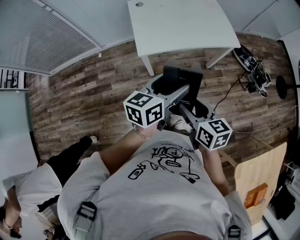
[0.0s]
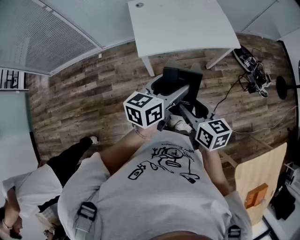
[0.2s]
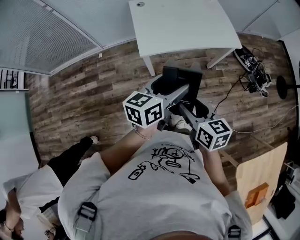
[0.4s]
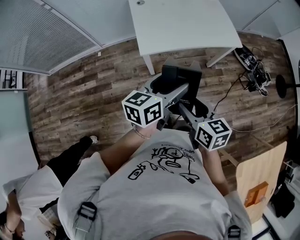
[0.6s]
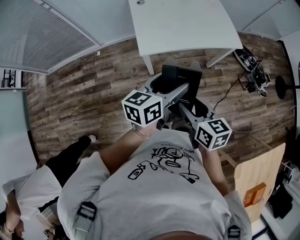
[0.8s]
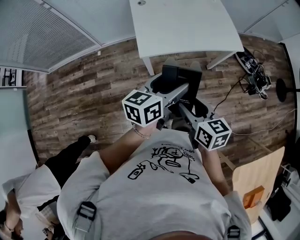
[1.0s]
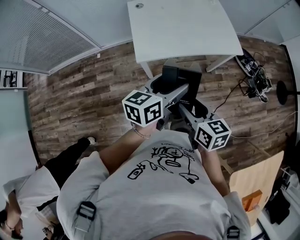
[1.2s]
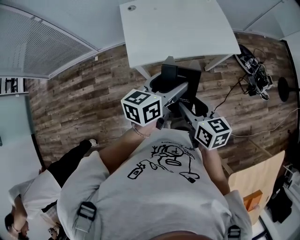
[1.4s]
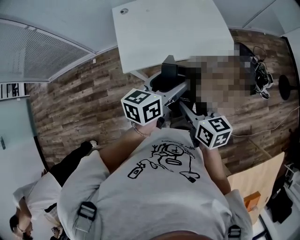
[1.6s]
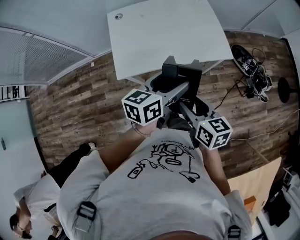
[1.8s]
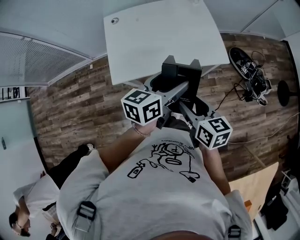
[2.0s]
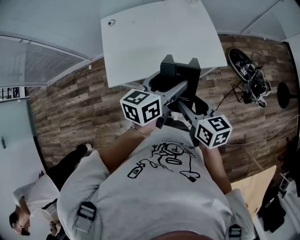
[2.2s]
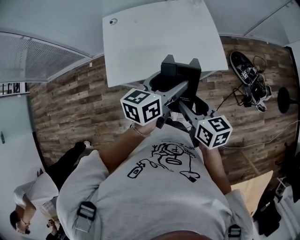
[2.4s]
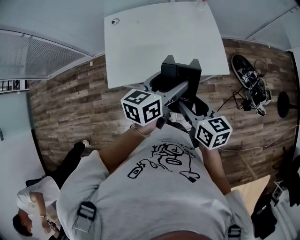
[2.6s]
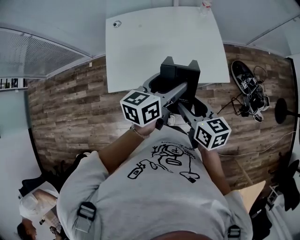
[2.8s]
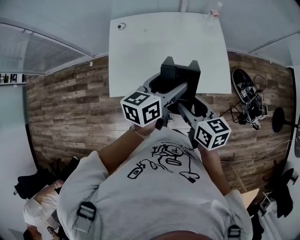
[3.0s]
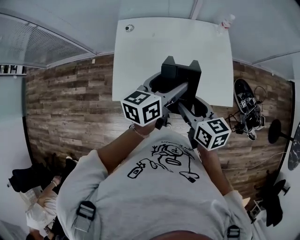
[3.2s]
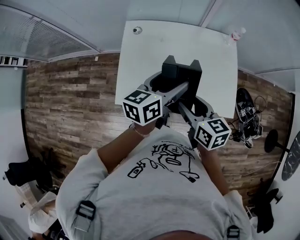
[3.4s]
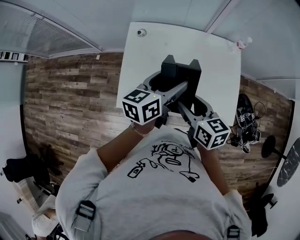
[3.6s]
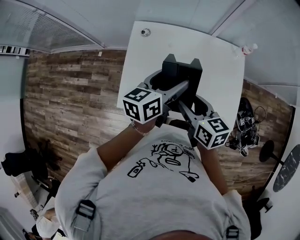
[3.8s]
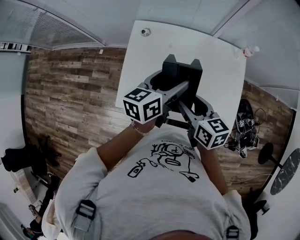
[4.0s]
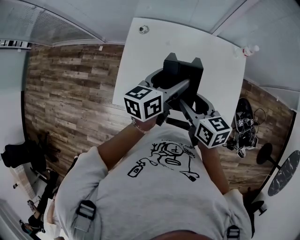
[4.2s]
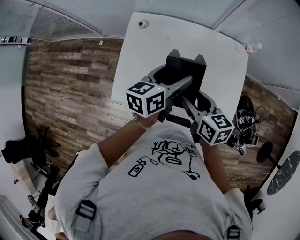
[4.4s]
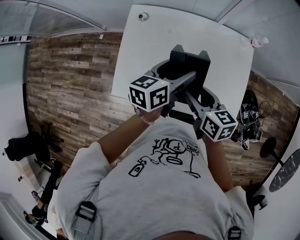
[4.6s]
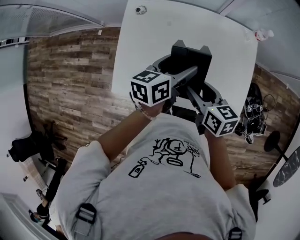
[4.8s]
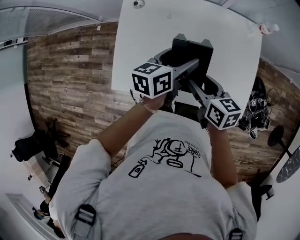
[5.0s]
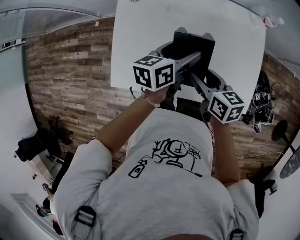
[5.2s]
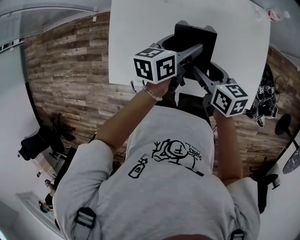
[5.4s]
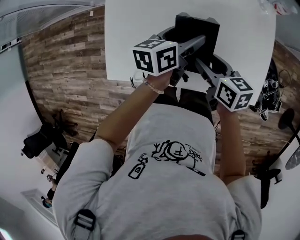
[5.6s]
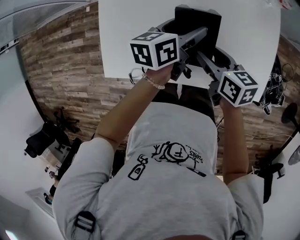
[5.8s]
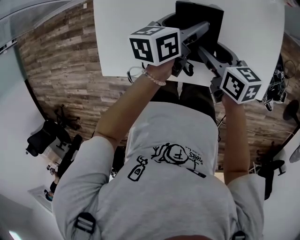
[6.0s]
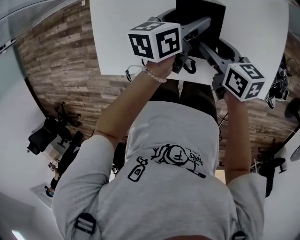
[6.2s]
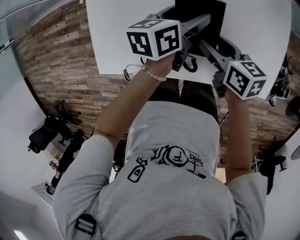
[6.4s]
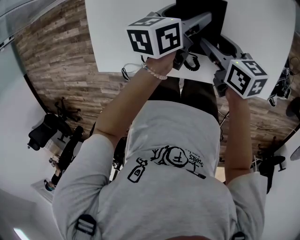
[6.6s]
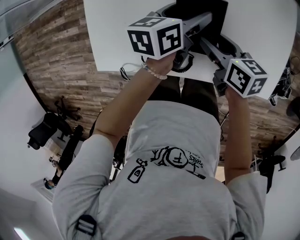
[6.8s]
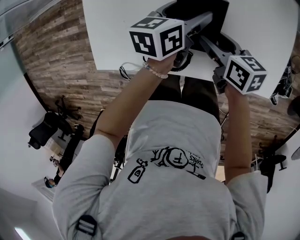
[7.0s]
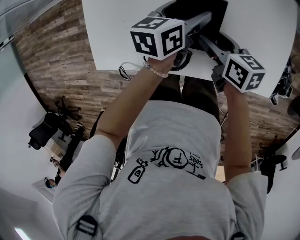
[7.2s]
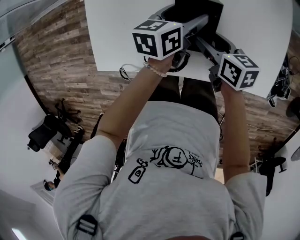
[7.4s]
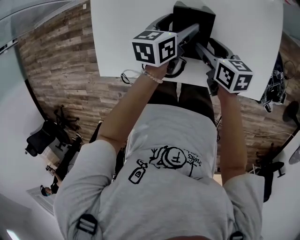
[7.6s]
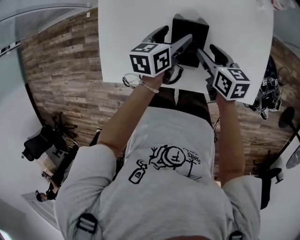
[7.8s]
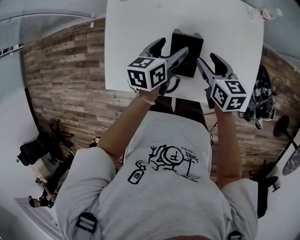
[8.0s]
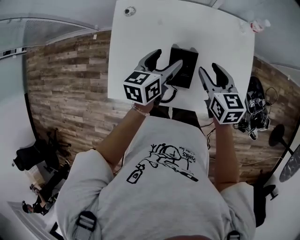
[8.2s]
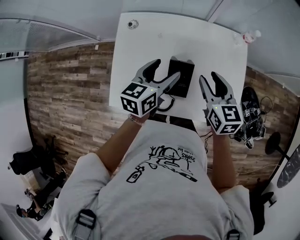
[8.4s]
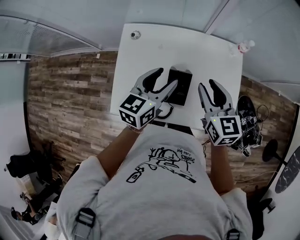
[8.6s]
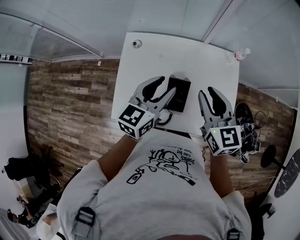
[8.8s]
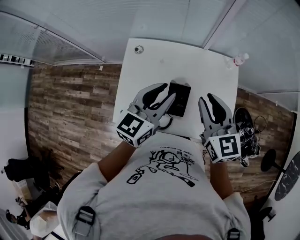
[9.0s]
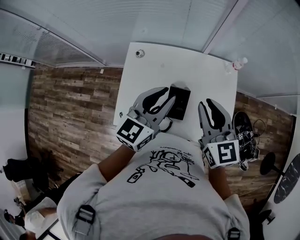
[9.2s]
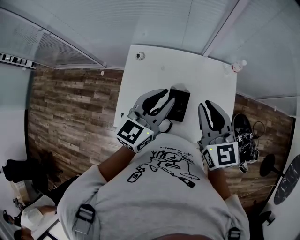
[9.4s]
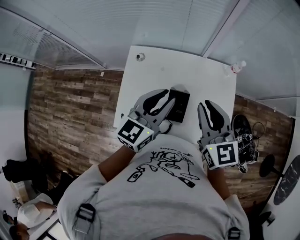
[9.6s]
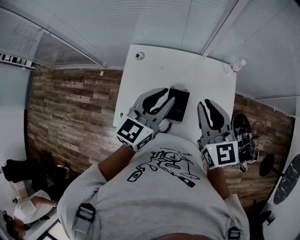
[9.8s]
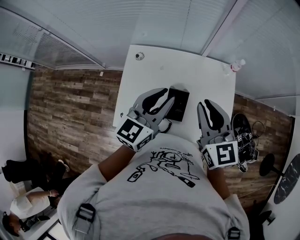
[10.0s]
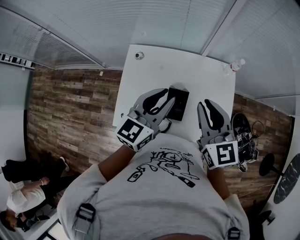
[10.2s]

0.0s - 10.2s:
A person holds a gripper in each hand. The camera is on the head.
0.0s - 1.4s: The two grippers go roughly 10 cm forward.
1.4s - 3.0s: The two grippers go approximately 30 cm forward and to the right.
3.0s - 4.4s: The grippers both shift forward by some 20 cm.
4.4s - 5.8s: Both grippers move downward, about 20 cm.
5.8s - 7.2s: The two grippers go about 5 cm downward.
7.2s - 8.8s: Both grippers travel together upward, some 35 cm. The right gripper rotates about 50 degrees, and closes its fingers, while the left gripper turns by approximately 30 degrees, and closes up.
8.8s - 10.2s: Both grippers move upward, roughly 5 cm.

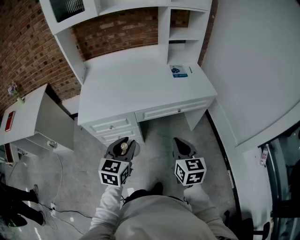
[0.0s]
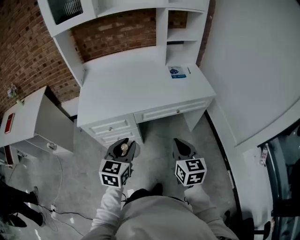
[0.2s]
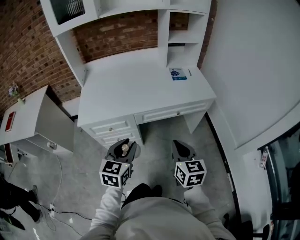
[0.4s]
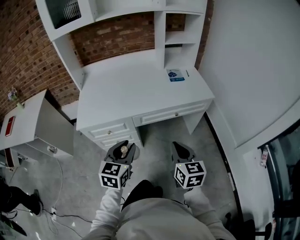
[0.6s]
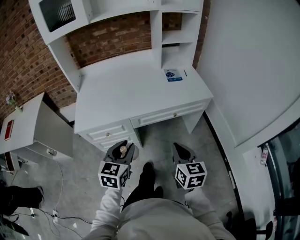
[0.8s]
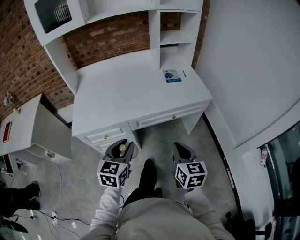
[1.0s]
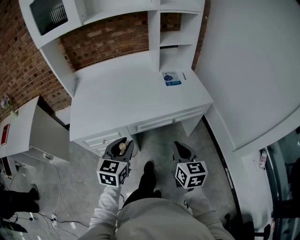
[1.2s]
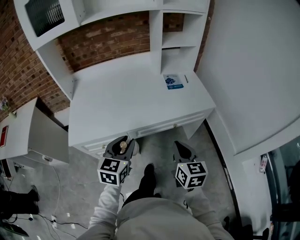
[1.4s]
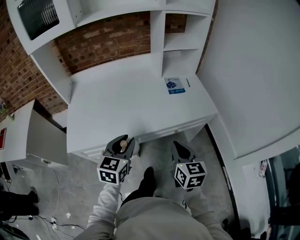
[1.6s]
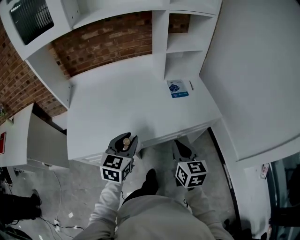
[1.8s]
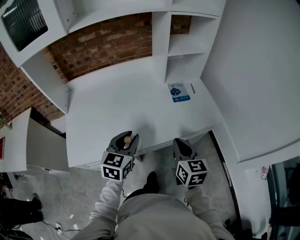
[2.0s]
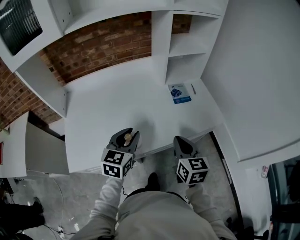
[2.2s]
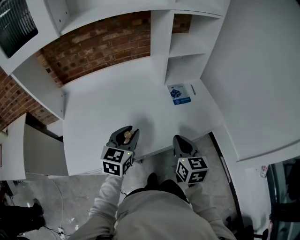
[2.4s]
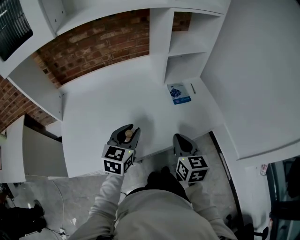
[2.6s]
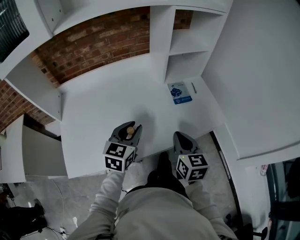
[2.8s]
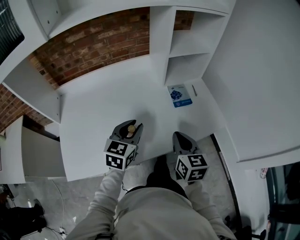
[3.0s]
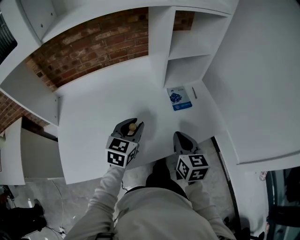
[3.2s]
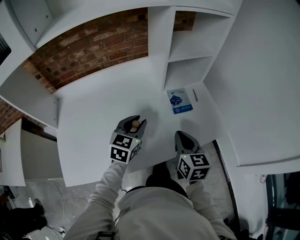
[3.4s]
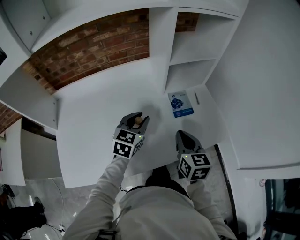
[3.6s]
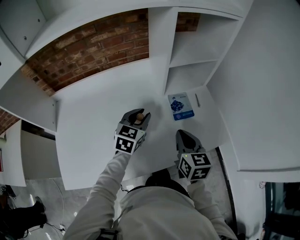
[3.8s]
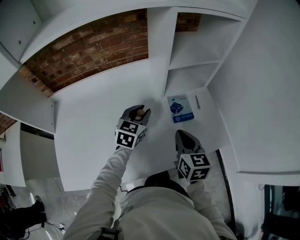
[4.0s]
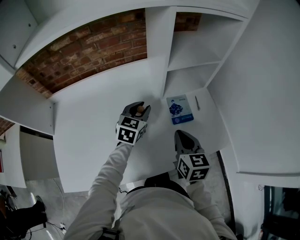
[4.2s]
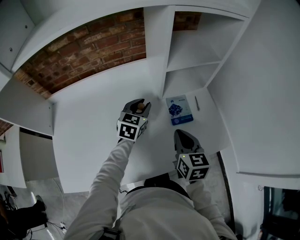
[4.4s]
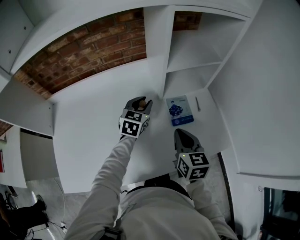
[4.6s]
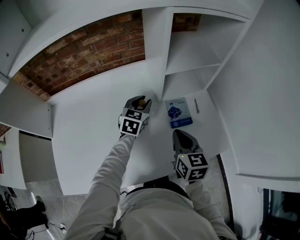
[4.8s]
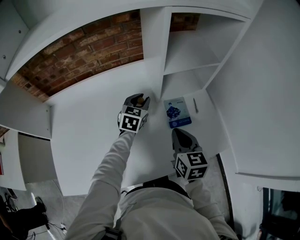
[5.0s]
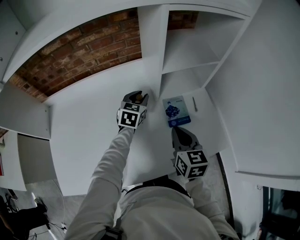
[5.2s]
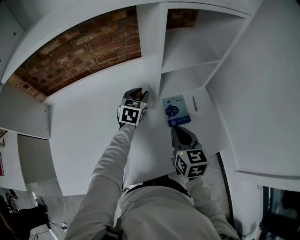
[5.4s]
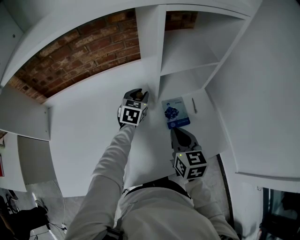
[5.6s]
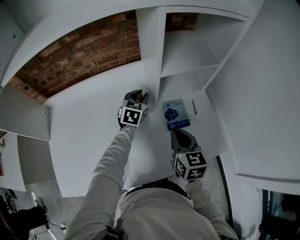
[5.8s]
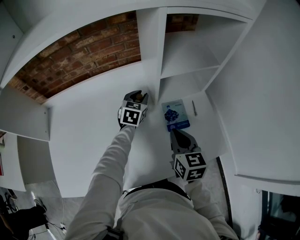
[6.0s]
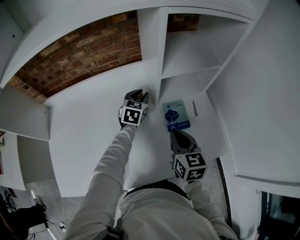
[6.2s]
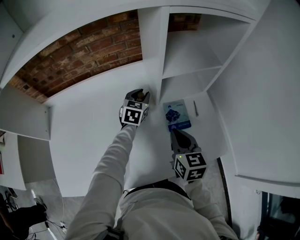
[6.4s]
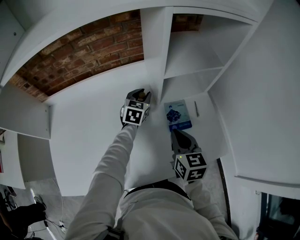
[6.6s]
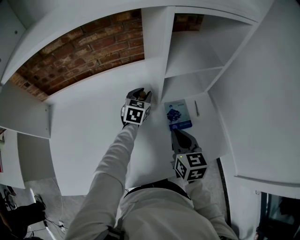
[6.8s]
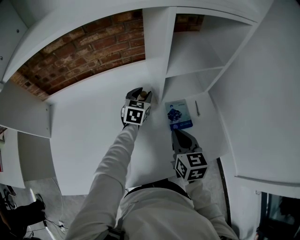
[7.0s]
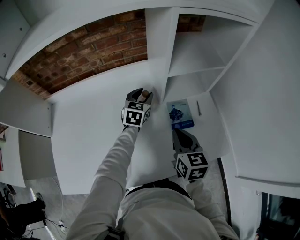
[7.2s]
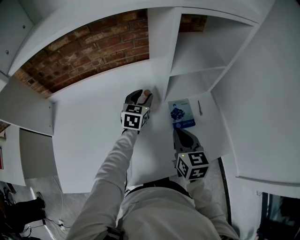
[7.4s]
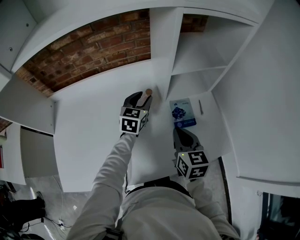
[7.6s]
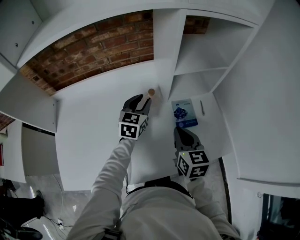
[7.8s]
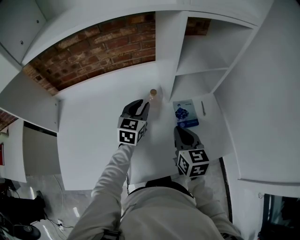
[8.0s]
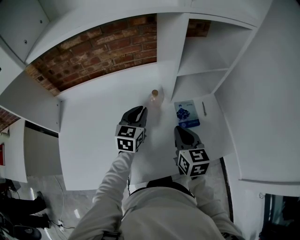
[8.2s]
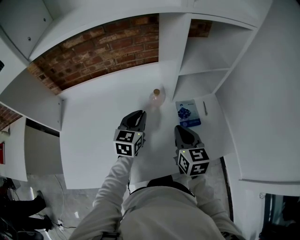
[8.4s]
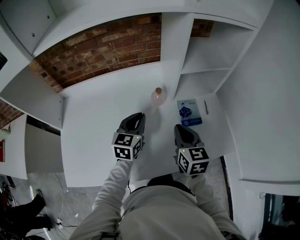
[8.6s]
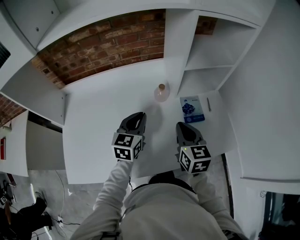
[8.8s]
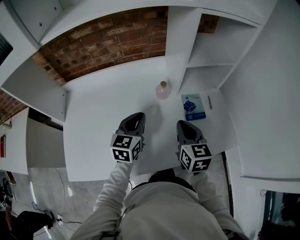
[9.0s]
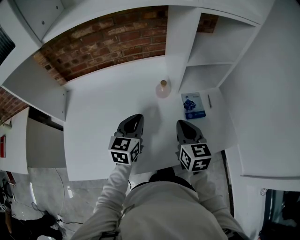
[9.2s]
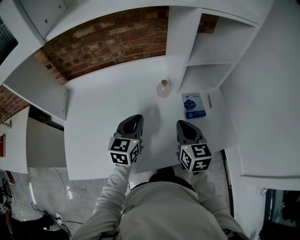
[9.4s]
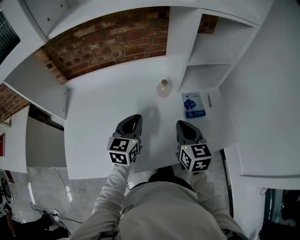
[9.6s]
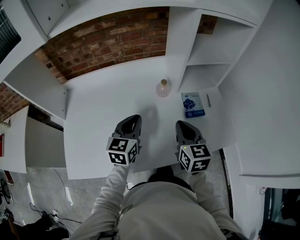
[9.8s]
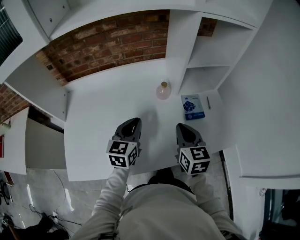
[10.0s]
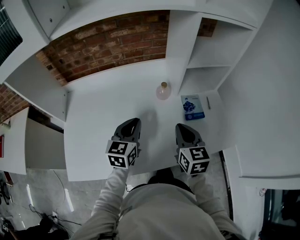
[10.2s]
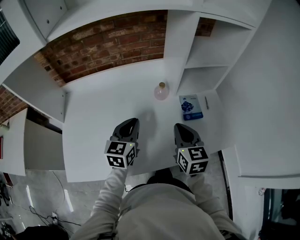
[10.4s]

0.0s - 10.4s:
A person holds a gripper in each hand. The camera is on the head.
0.0s - 1.4s: The grippers both shift forward by about 10 cm.
1.4s - 3.0s: The grippers both shift forward by some 25 cm.
3.0s - 4.4s: The left gripper goes about 25 cm forward; the right gripper moves forward, some 15 cm.
4.4s - 6.0s: The left gripper goes approximately 10 cm forward.
6.0s - 7.4s: The grippers make only small movements.
7.4s - 9.0s: The right gripper moves to the left, about 5 cm; the left gripper travels backward and to the left by roughly 20 cm, and closes its fingers.
9.0s - 10.4s: There are only small adjustments of the grippers.

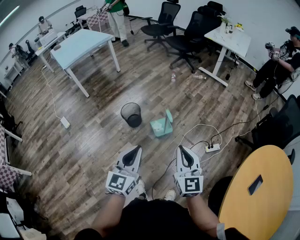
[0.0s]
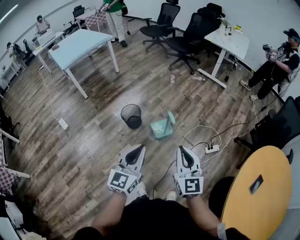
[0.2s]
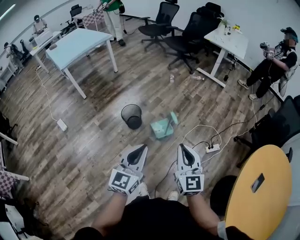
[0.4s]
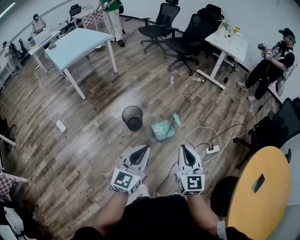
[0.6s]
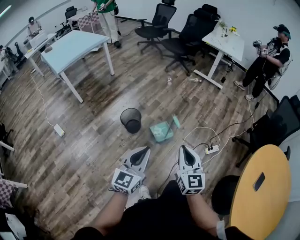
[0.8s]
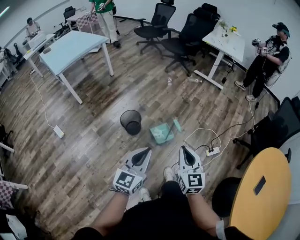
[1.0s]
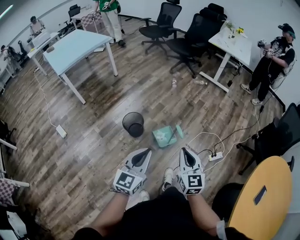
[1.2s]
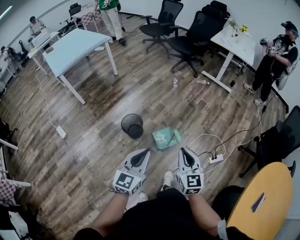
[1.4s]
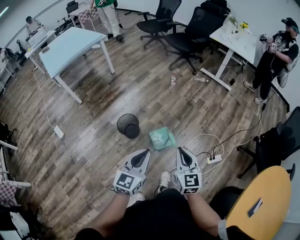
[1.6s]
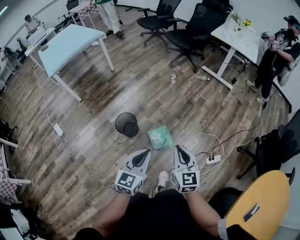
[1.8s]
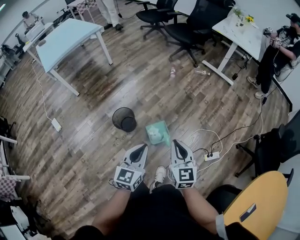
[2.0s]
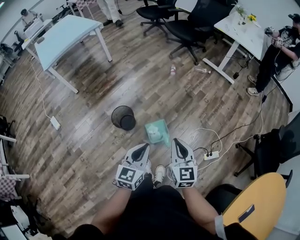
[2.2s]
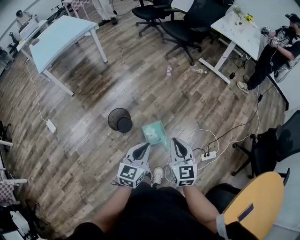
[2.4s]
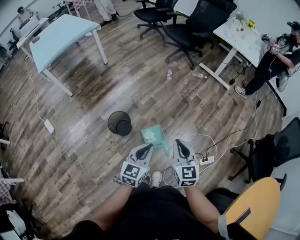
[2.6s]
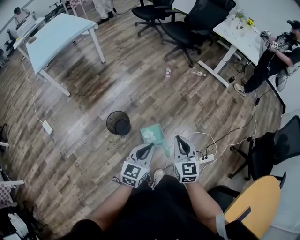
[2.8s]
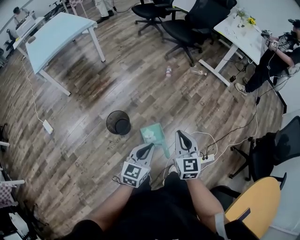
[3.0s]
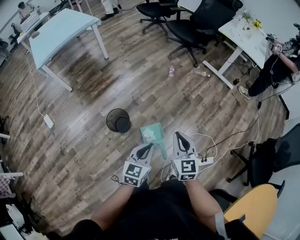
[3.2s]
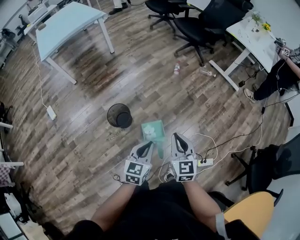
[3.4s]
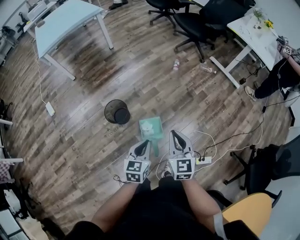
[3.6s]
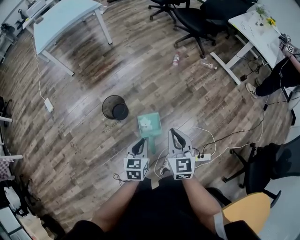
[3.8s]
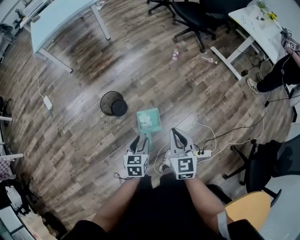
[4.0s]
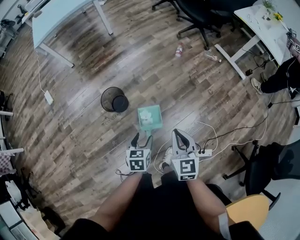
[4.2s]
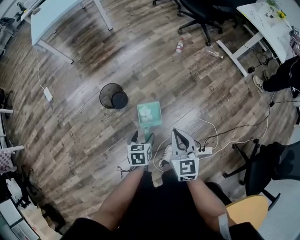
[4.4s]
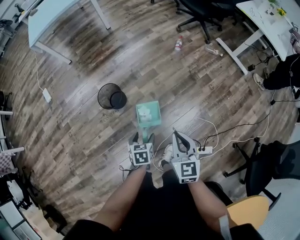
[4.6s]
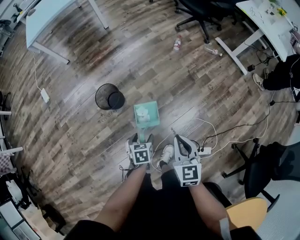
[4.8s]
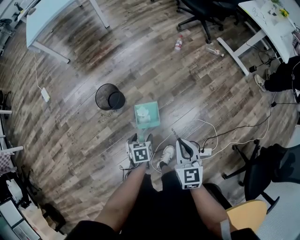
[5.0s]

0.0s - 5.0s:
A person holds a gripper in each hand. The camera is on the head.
0.0s - 1.6s: Both grippers move forward, roughly 20 cm.
1.6s - 3.4s: The left gripper goes roughly 20 cm forward and downward, while the right gripper is displaced forward by roughly 20 cm.
3.4s - 5.0s: The left gripper heads downward, covering some 25 cm, points its fingers roughly 40 degrees further downward, and opens up, while the right gripper is displaced to the right and downward by some 15 cm.
